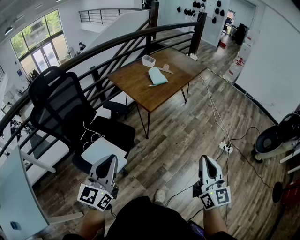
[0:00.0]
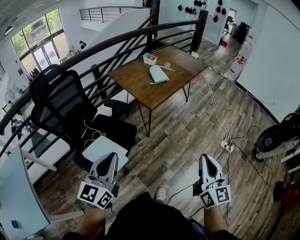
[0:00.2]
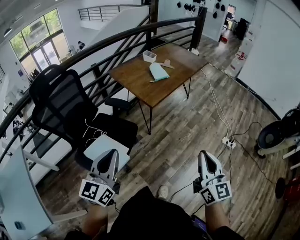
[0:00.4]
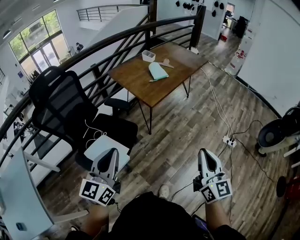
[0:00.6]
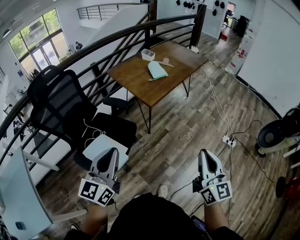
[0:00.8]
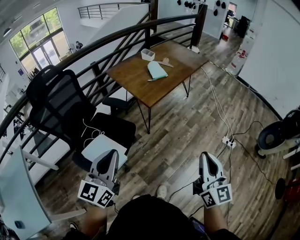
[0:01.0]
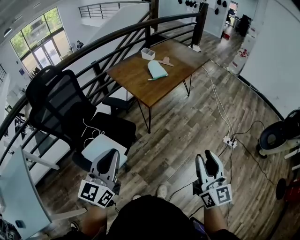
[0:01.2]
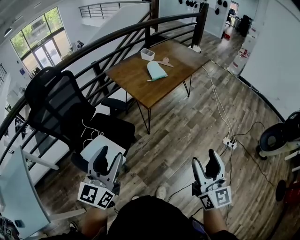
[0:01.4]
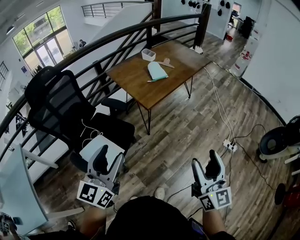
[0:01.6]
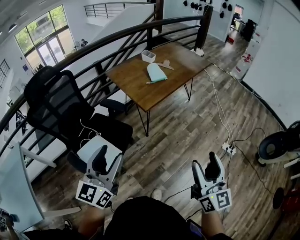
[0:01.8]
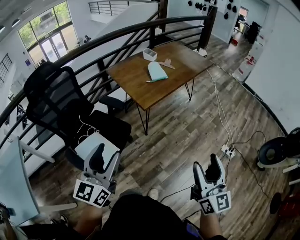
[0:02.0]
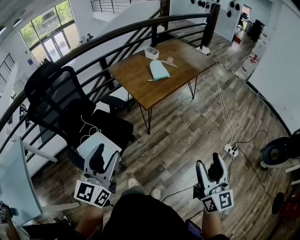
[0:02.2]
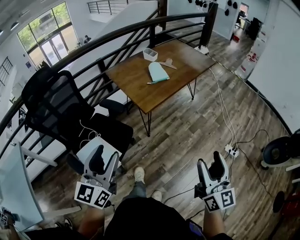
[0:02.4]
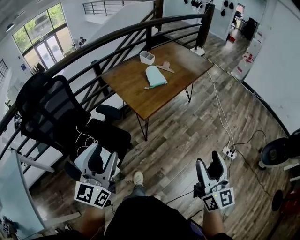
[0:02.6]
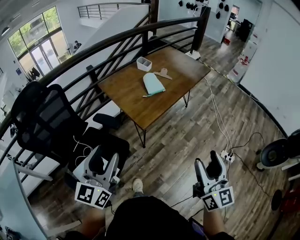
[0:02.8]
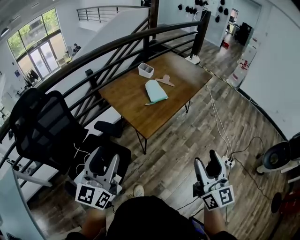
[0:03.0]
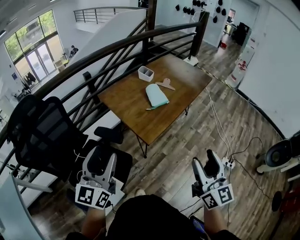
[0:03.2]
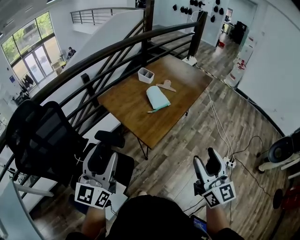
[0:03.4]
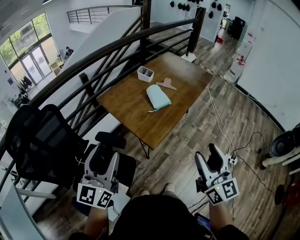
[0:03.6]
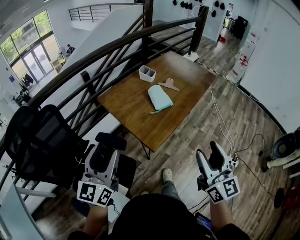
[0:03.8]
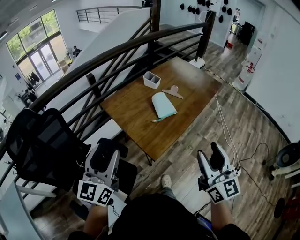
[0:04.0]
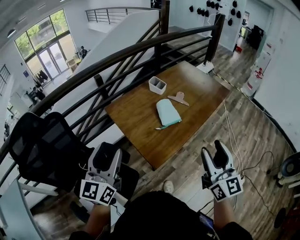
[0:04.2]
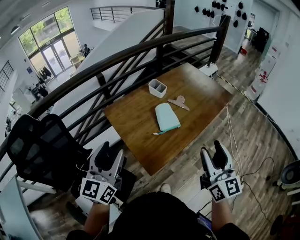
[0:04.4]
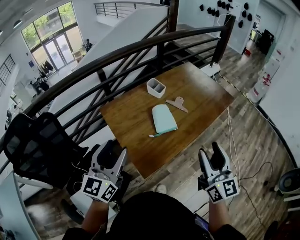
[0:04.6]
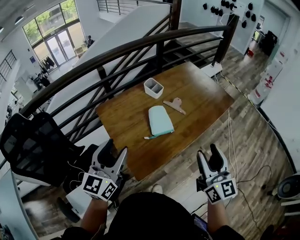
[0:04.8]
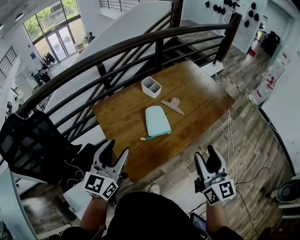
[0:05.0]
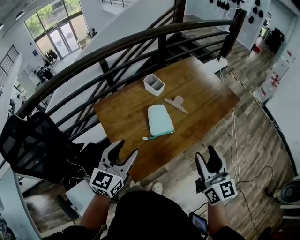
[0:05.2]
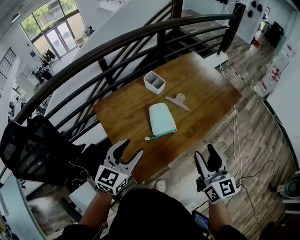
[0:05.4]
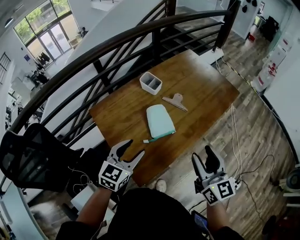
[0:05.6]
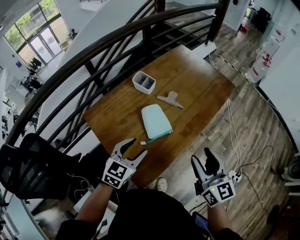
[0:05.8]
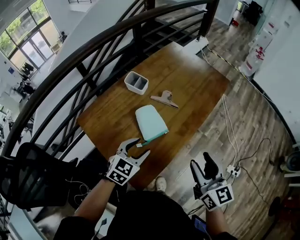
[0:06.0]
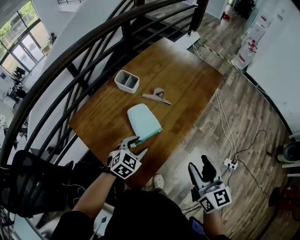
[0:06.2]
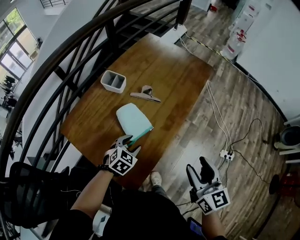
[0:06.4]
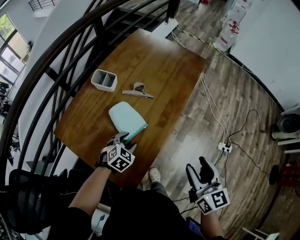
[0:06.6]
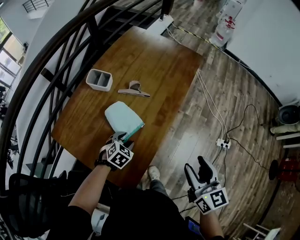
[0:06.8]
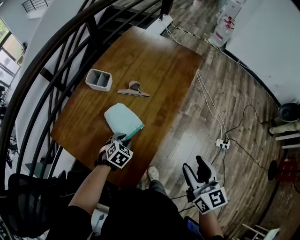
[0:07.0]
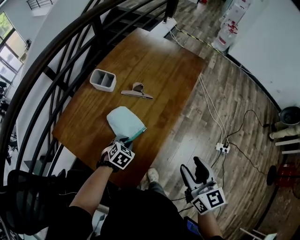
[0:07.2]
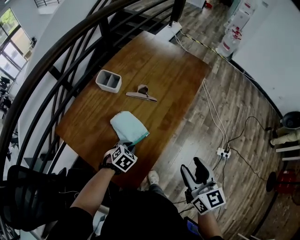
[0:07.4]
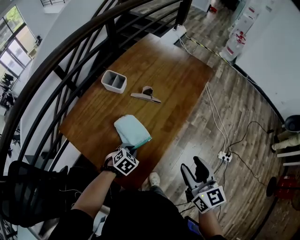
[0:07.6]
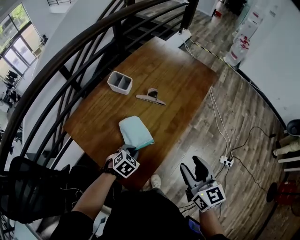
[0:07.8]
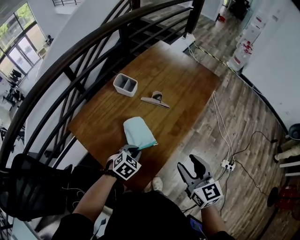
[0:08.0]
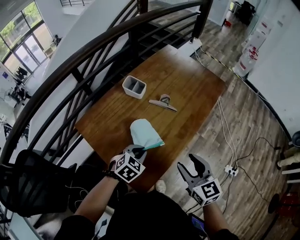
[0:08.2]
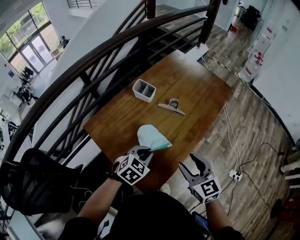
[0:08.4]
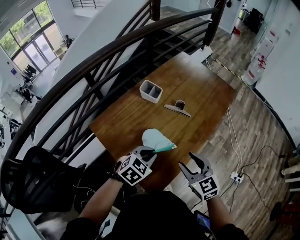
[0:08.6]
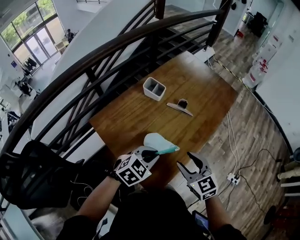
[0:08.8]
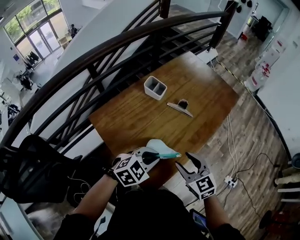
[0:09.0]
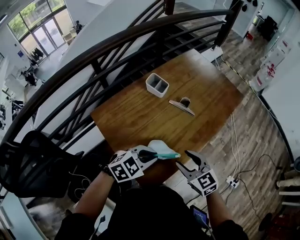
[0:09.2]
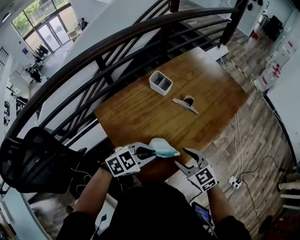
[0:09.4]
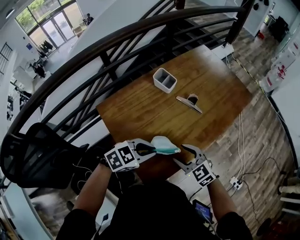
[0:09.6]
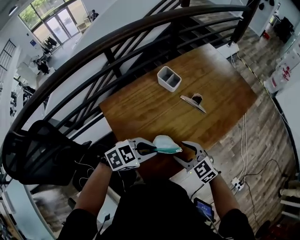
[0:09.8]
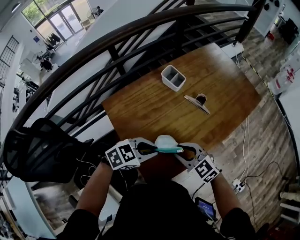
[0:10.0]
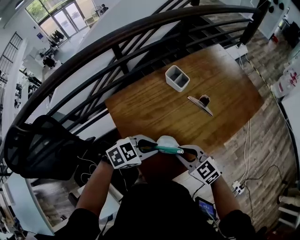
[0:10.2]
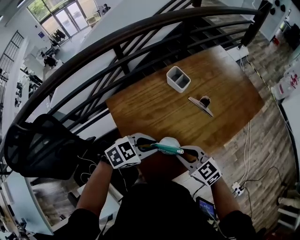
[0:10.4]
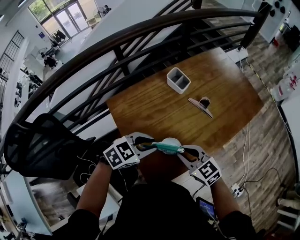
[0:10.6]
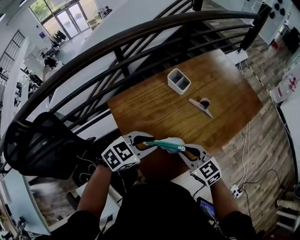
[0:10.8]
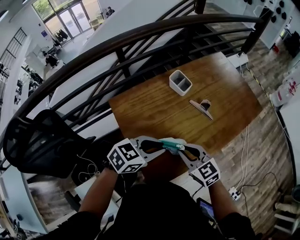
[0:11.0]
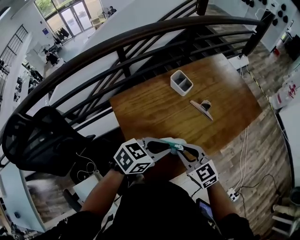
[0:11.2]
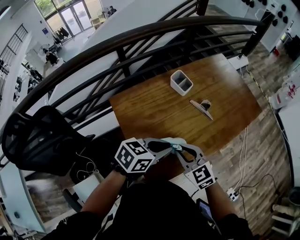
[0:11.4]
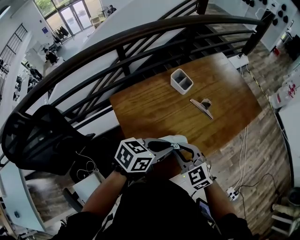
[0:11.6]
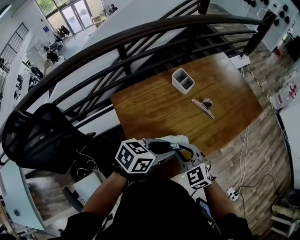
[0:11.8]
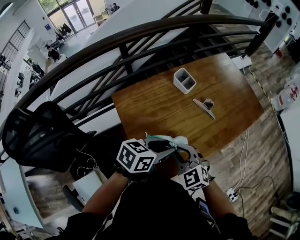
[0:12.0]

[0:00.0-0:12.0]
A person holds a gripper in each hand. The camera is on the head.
0:00.0 to 0:01.6: The right gripper shifts by roughly 5 cm, and opens its fingers. The left gripper is displaced forward and to the right by roughly 10 cm, and opens up.
0:01.6 to 0:03.0: The grippers both shift forward by approximately 20 cm.
0:03.0 to 0:04.4: Both grippers move forward, some 25 cm.
0:04.4 to 0:06.0: The right gripper heads downward and forward, covering about 15 cm. The left gripper moves downward, forward and to the right, roughly 35 cm, and tilts its fingers about 40 degrees downward.
0:06.0 to 0:07.6: The left gripper heads downward, covering approximately 15 cm, turns by roughly 30 degrees, and closes up.
0:07.6 to 0:09.0: The right gripper shifts approximately 15 cm to the left, and rotates some 40 degrees. The left gripper travels upward by approximately 15 cm, and turns by approximately 20 degrees.
0:09.0 to 0:10.4: The left gripper shifts by roughly 5 cm. Meanwhile the right gripper shifts by about 10 cm, turns by about 30 degrees, and closes up.
0:10.4 to 0:12.0: The left gripper ends up some 5 cm from where it was, and turns by roughly 40 degrees. The right gripper rotates roughly 20 degrees.

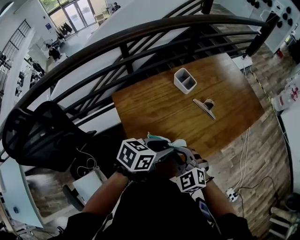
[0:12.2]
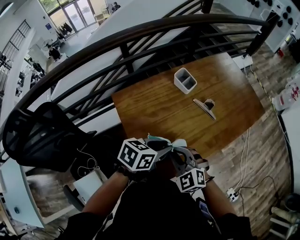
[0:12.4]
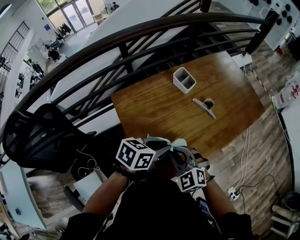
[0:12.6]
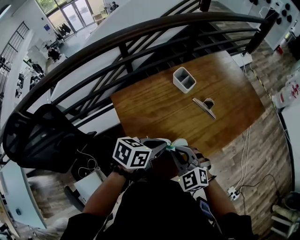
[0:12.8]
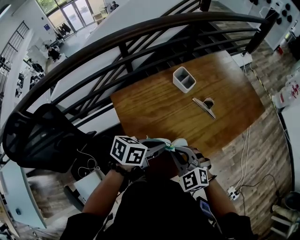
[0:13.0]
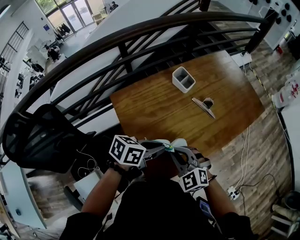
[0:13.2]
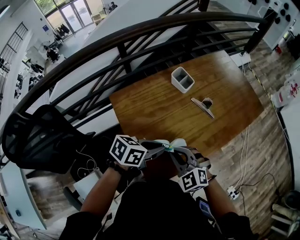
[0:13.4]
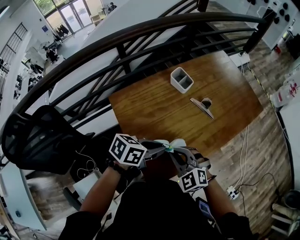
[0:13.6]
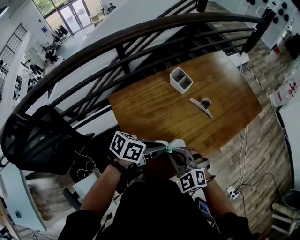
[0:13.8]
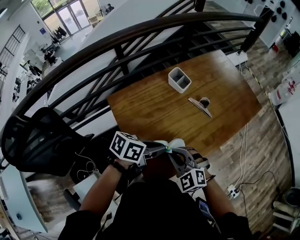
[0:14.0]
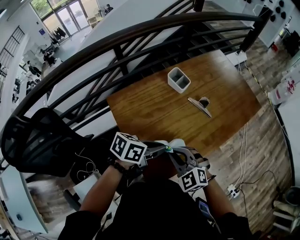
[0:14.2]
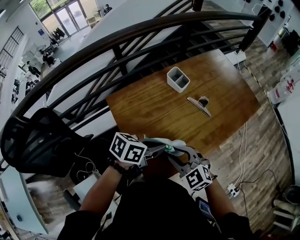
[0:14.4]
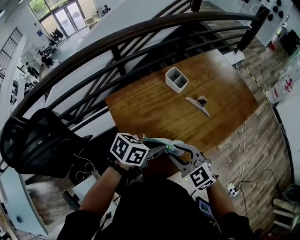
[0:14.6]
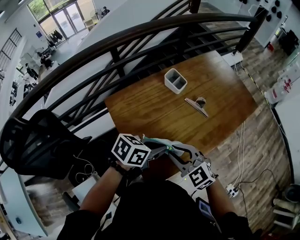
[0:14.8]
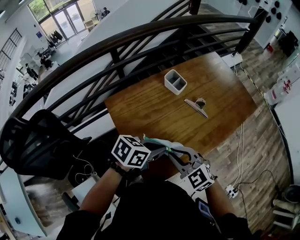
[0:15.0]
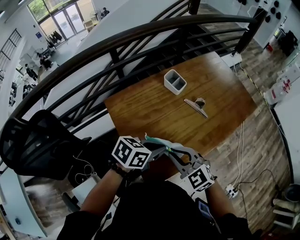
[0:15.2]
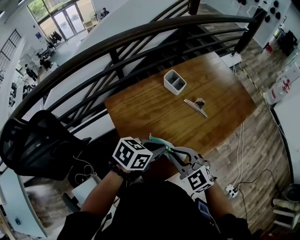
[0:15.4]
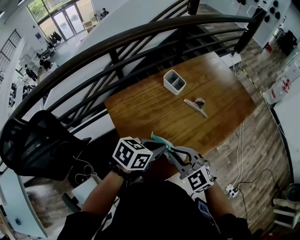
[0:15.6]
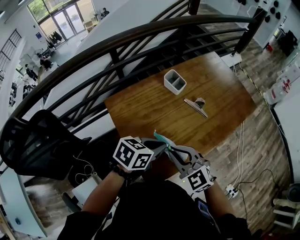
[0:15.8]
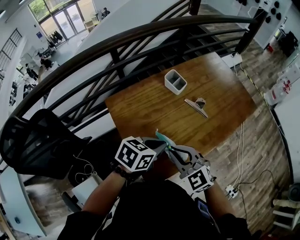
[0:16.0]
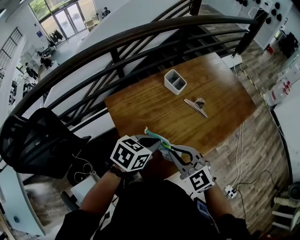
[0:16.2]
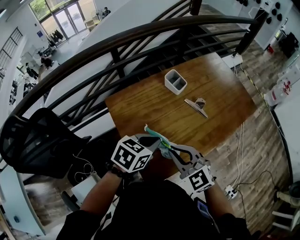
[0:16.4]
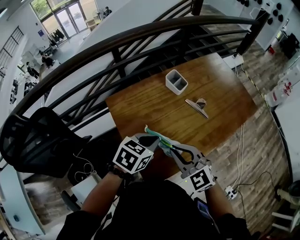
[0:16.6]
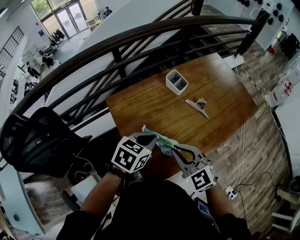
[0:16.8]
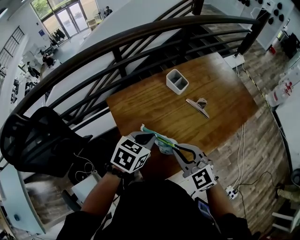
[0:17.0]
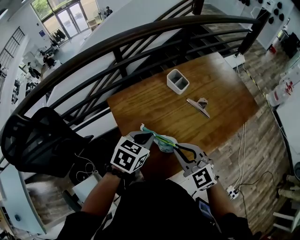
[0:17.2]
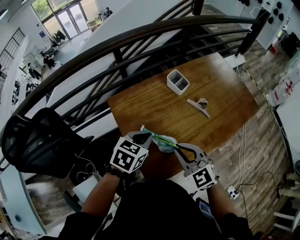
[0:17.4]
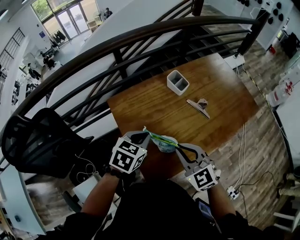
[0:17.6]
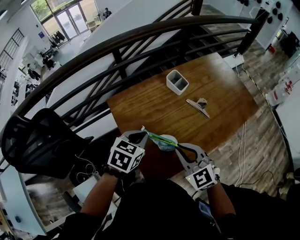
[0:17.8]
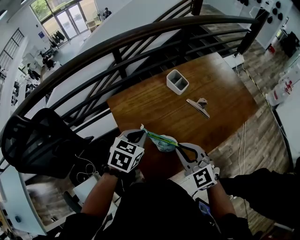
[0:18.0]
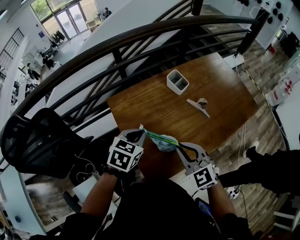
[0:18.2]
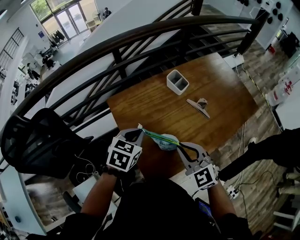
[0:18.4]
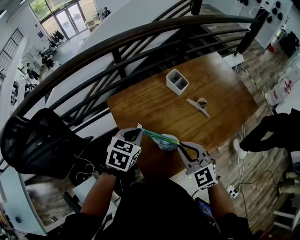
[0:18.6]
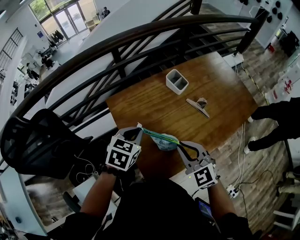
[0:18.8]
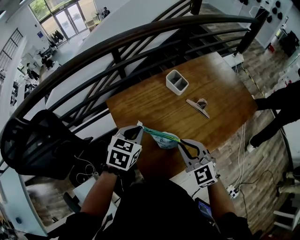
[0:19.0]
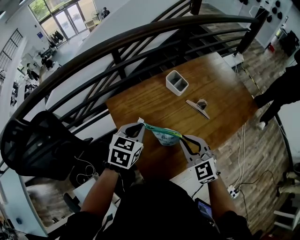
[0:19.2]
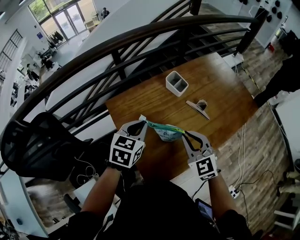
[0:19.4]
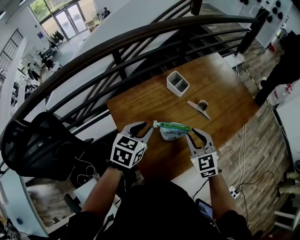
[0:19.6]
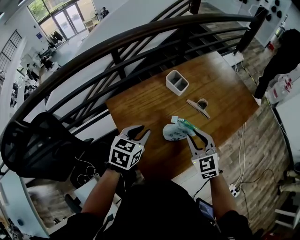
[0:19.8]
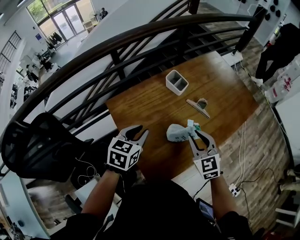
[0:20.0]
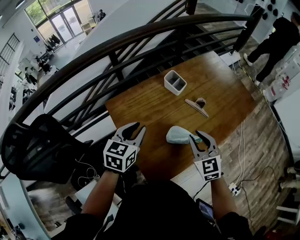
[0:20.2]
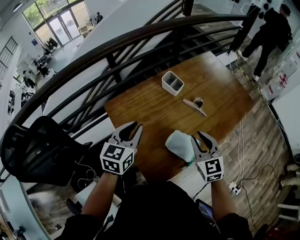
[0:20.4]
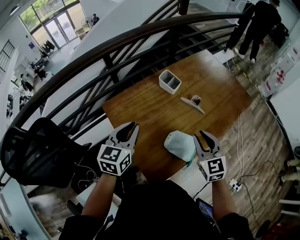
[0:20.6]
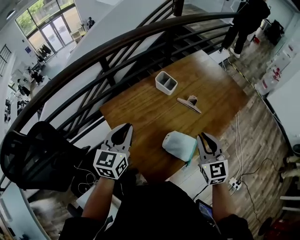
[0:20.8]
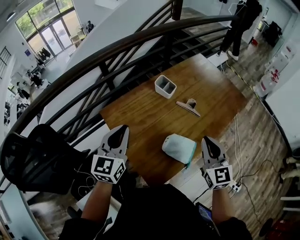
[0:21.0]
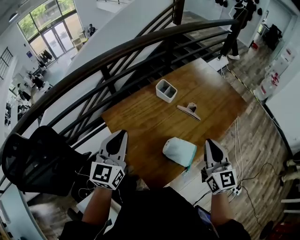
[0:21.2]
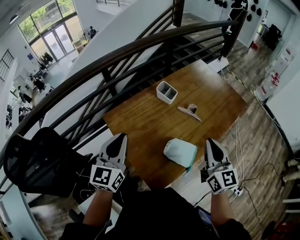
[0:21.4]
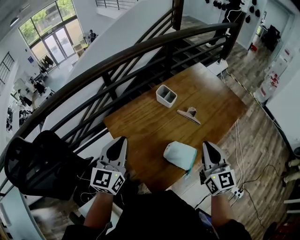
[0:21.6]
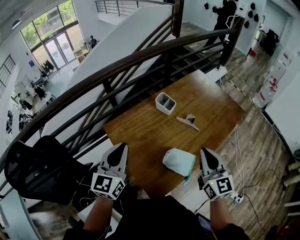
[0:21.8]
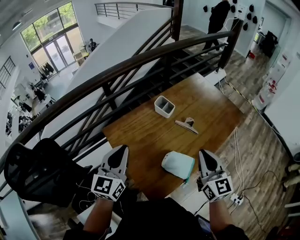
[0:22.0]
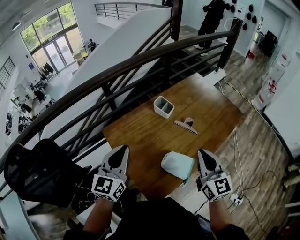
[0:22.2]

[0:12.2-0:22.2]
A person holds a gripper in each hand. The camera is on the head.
0:12.2 to 0:13.6: The left gripper closes.
0:13.6 to 0:15.0: The grippers make only small movements.
0:15.0 to 0:16.4: The left gripper turns by some 20 degrees.
0:16.4 to 0:18.0: The left gripper moves to the left, about 5 cm.
0:18.0 to 0:19.4: The two grippers go approximately 5 cm forward.
0:19.4 to 0:20.8: The right gripper is displaced to the right by about 10 cm, and turns by about 20 degrees, while the left gripper ends up some 5 cm from where it was, and changes its angle by roughly 20 degrees.
0:20.8 to 0:22.2: The two grippers go about 5 cm upward.

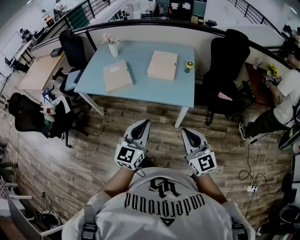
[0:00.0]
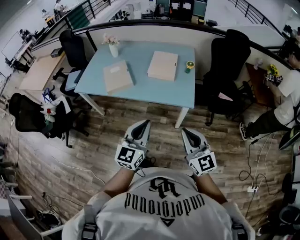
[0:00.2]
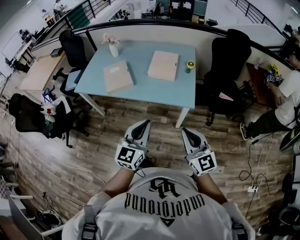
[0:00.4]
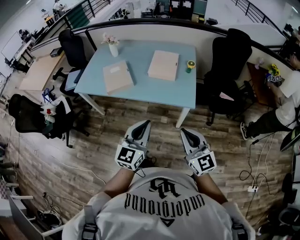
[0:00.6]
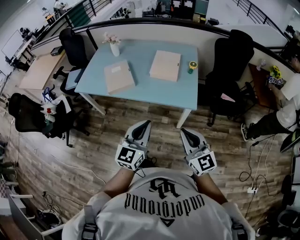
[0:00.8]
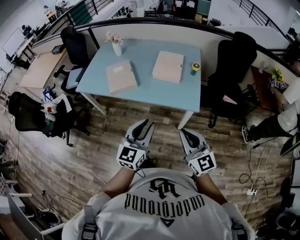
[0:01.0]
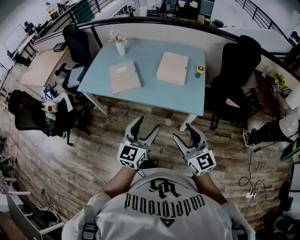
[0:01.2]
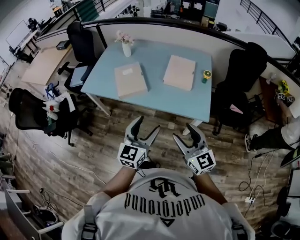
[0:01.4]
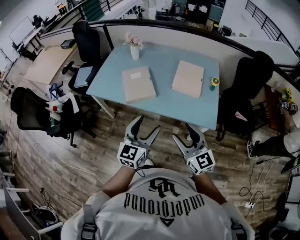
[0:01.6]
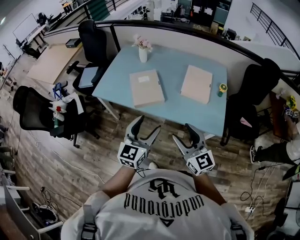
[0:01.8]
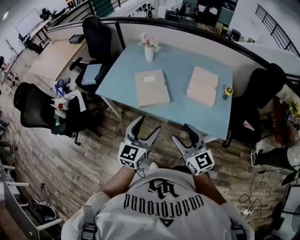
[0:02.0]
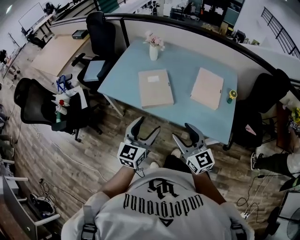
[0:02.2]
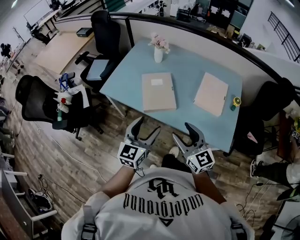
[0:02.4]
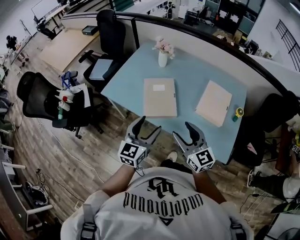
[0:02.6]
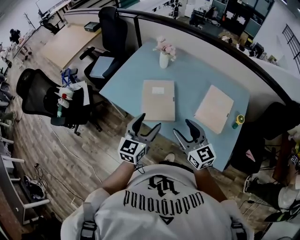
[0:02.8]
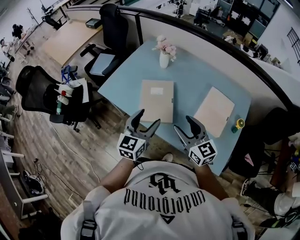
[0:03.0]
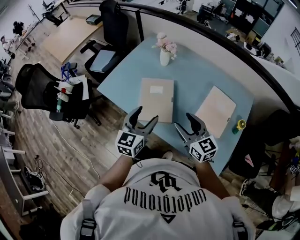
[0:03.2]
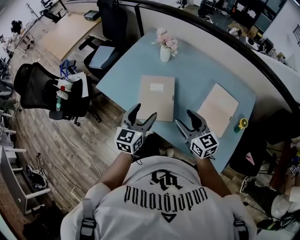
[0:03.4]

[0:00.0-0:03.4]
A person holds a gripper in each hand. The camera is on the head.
0:00.0 to 0:01.6: The left gripper is displaced forward and to the left by roughly 20 cm, and opens its fingers, while the right gripper travels to the left and forward by approximately 25 cm, and opens.
0:01.6 to 0:03.4: The grippers both shift forward by about 35 cm. The left gripper rotates roughly 20 degrees. The right gripper swivels about 30 degrees.
